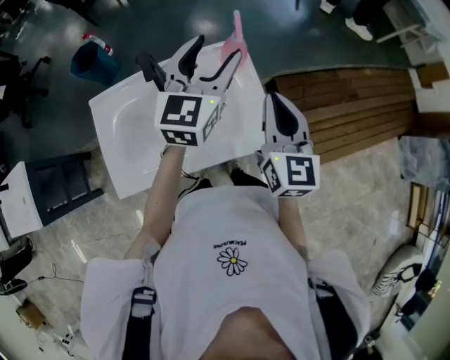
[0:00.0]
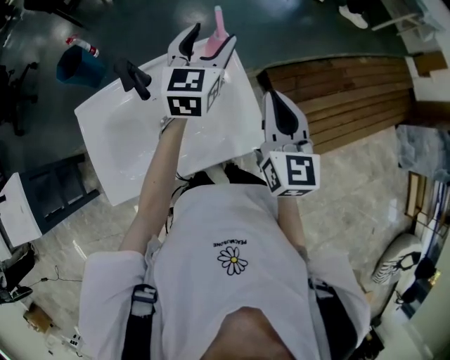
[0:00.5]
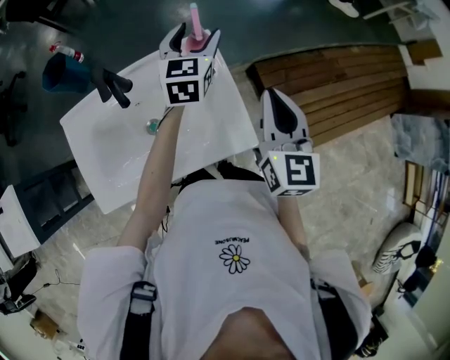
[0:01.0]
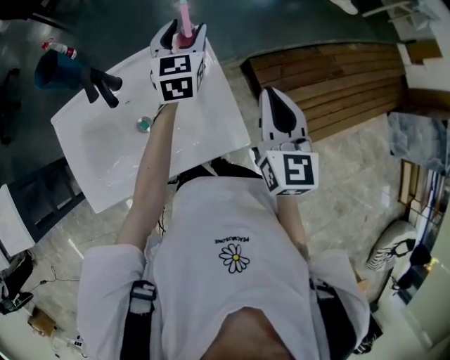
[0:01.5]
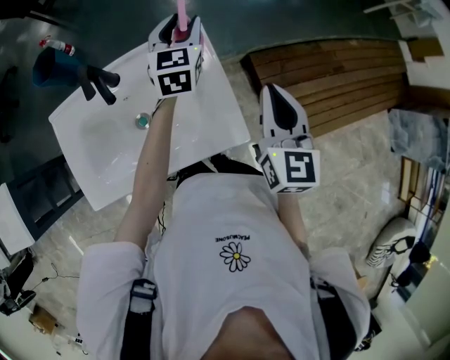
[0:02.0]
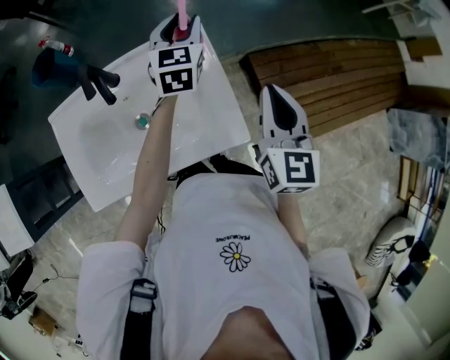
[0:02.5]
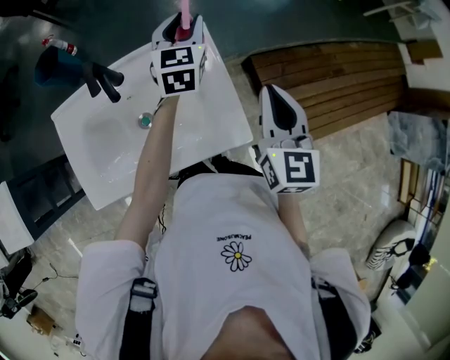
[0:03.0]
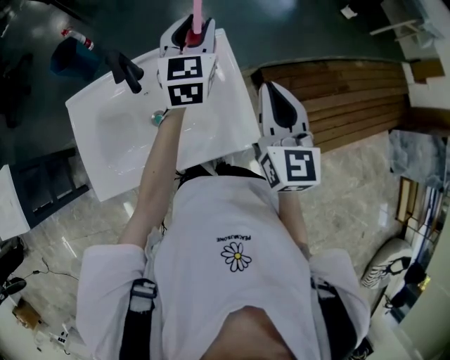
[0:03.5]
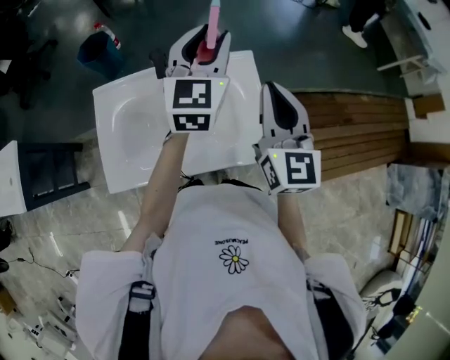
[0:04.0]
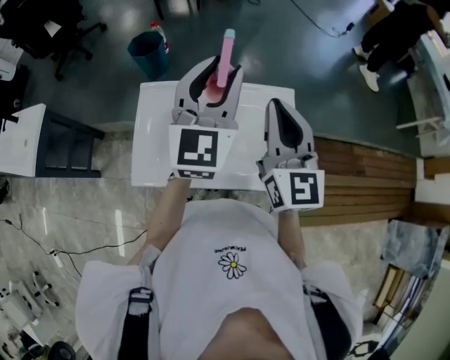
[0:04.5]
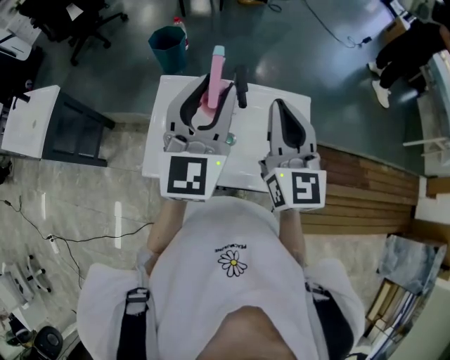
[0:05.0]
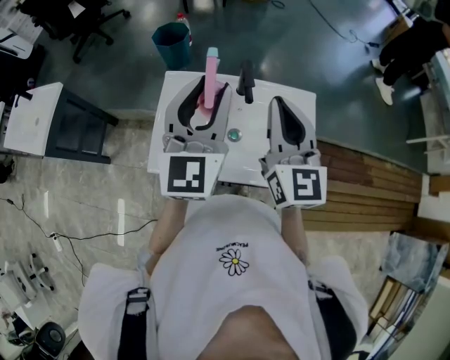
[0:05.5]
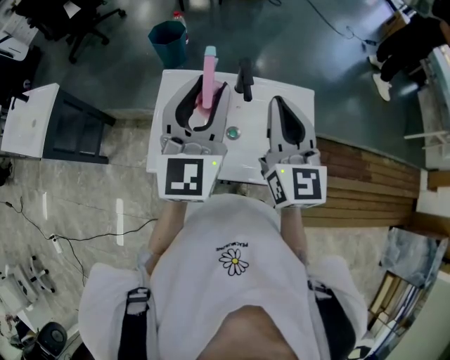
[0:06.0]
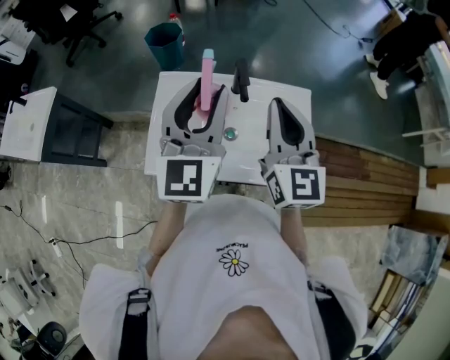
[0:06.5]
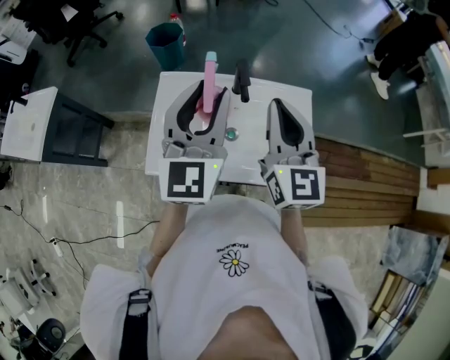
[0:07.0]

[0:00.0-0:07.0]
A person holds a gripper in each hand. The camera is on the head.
0:00.0 to 0:02.0: The right gripper travels to the right and downward by roughly 10 cm. Meanwhile the left gripper heads downward and forward, covering some 20 cm, and closes.
0:02.0 to 0:03.5: The right gripper shifts approximately 5 cm to the left. Meanwhile the left gripper heads upward, covering about 10 cm.
0:03.5 to 0:05.0: The right gripper heads to the left and upward, covering about 25 cm, and turns by some 30 degrees, while the left gripper travels to the left, backward and upward by some 35 cm, and swivels approximately 20 degrees.
0:05.0 to 0:07.0: The grippers stay close to where they were, moving slightly.

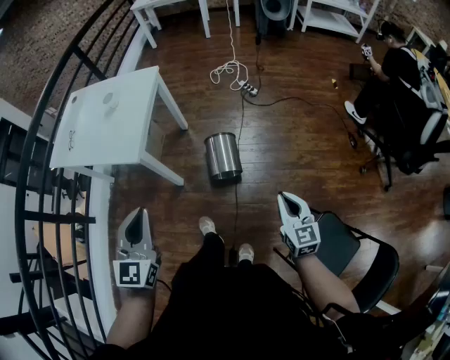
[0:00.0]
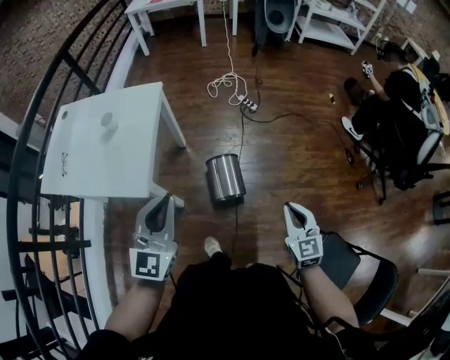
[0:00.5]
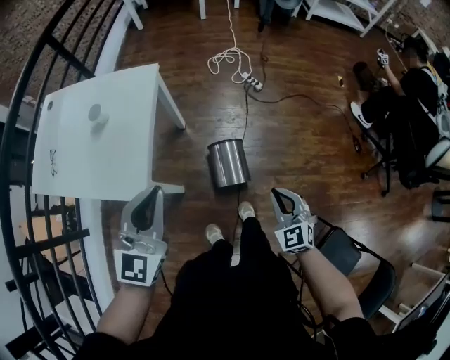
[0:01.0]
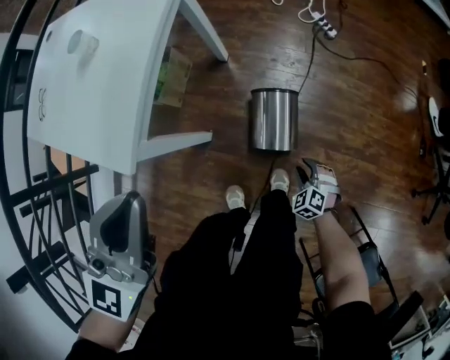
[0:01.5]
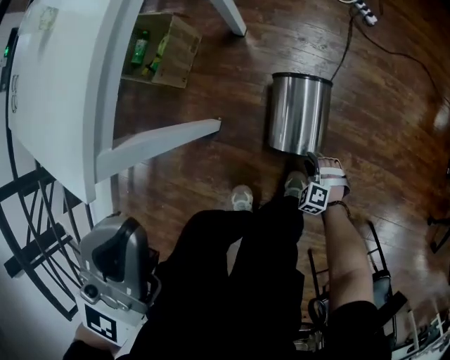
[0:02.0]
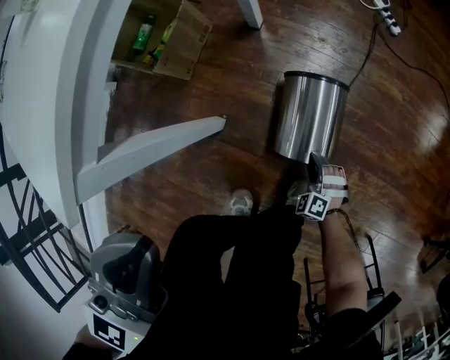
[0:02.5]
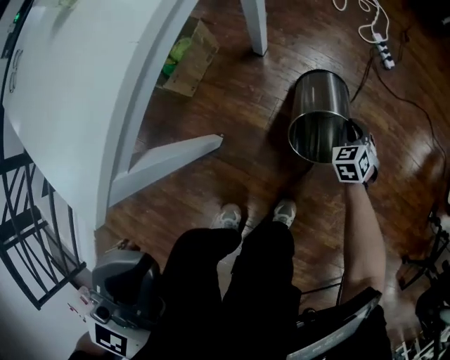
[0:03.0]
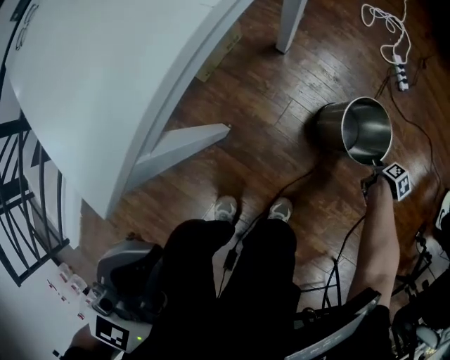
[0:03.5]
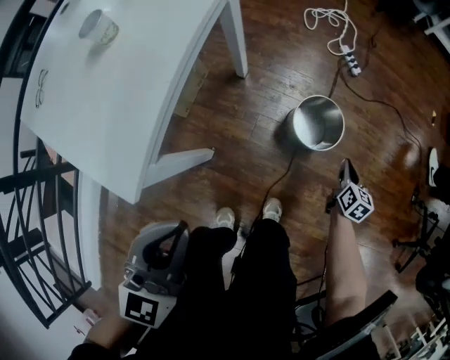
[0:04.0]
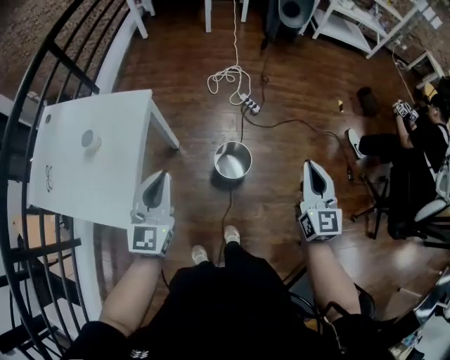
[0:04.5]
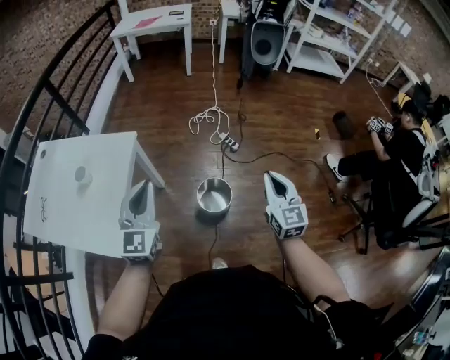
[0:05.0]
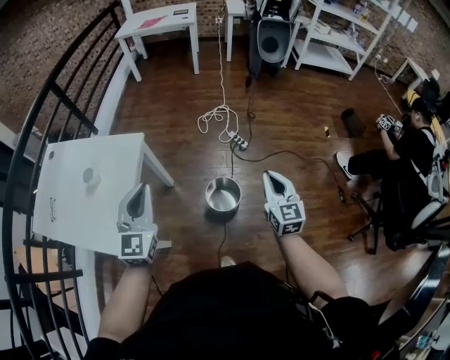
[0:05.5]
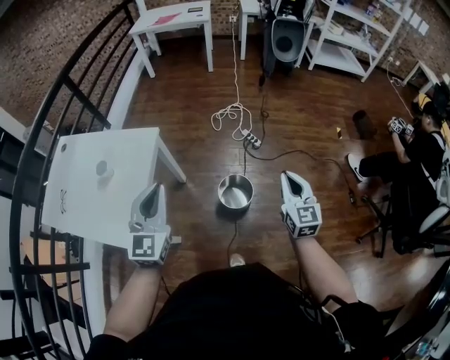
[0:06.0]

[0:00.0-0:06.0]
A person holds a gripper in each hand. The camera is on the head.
0:00.0 to 0:02.0: The left gripper travels forward and downward by approximately 30 cm, while the right gripper heads downward, covering roughly 60 cm, angles its fingers downward, by about 50 degrees, and opens its fingers.
0:02.0 to 0:04.0: The right gripper travels upward, forward and to the right by about 35 cm, rolls clockwise, seen from behind, by about 90 degrees, and closes up.
0:04.0 to 0:06.0: The right gripper shifts some 50 cm upward, and swivels roughly 40 degrees. Meanwhile the left gripper heads upward and forward, covering some 25 cm.

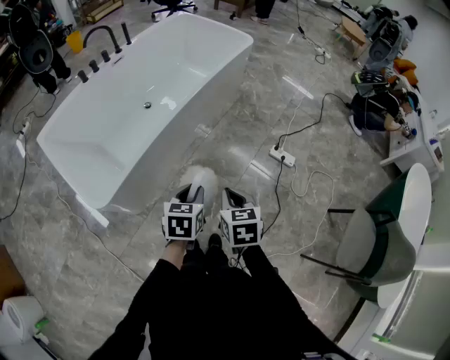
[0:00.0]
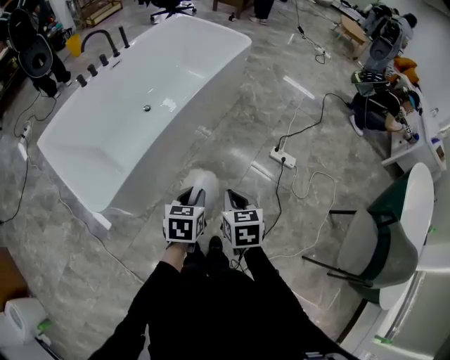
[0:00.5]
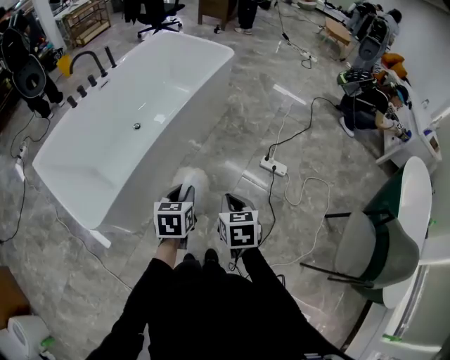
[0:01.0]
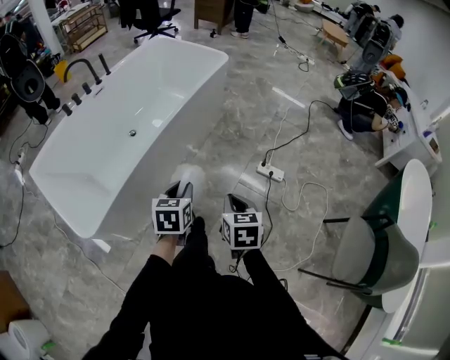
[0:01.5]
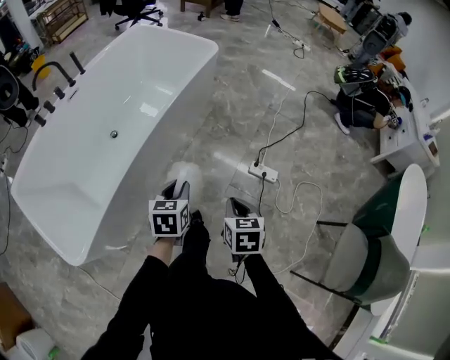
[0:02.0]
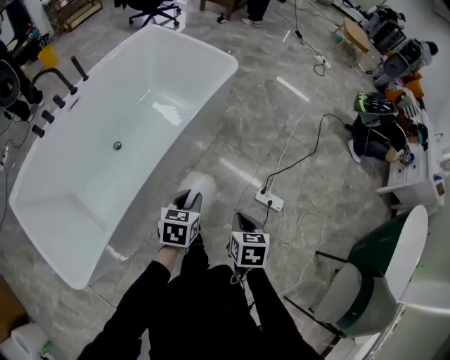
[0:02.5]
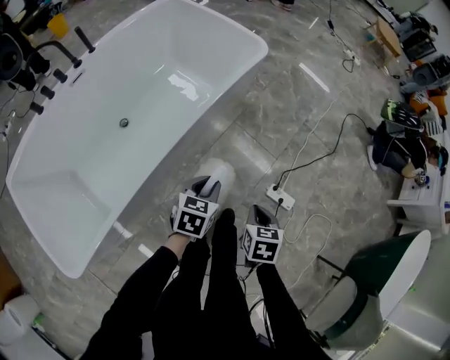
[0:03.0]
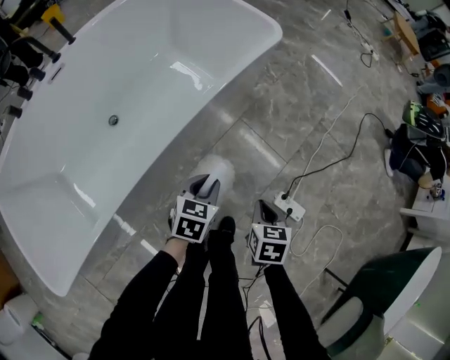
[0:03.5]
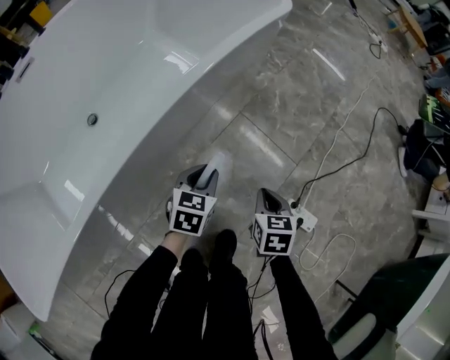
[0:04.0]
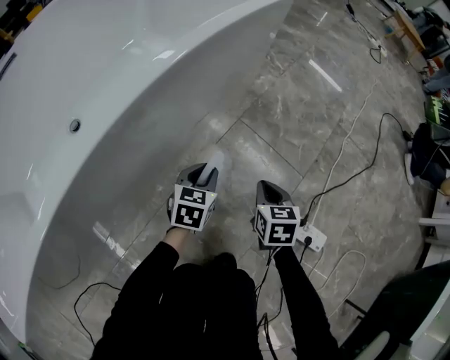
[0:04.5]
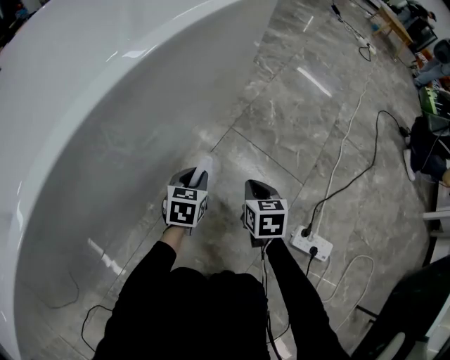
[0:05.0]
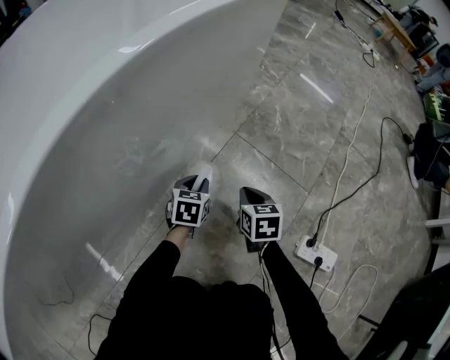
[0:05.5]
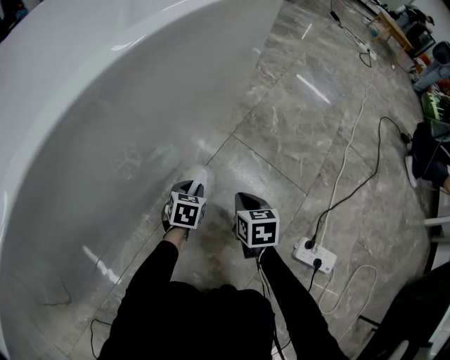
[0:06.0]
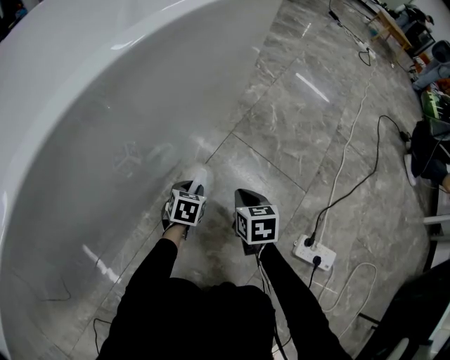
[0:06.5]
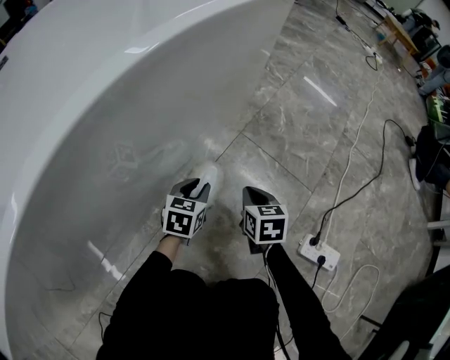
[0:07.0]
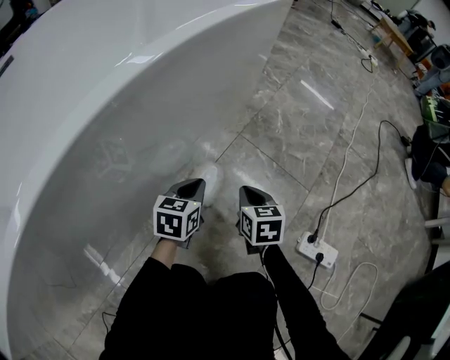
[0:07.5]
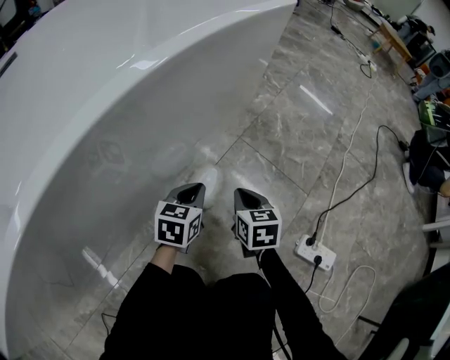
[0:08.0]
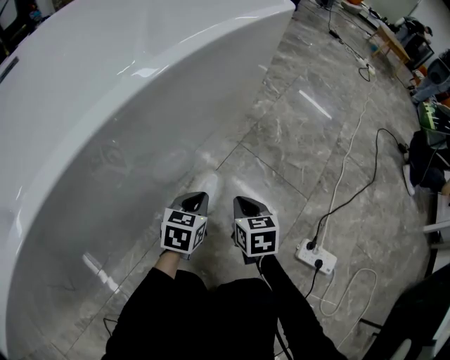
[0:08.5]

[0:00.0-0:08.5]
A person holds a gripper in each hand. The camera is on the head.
0:00.0 to 0:02.0: The right gripper is displaced forward and to the right by about 20 cm. Meanwhile the left gripper travels forward by approximately 20 cm.
0:02.0 to 0:04.0: The right gripper moves forward and downward, roughly 50 cm. Meanwhile the left gripper shifts roughly 50 cm downward and forward.
0:04.0 to 0:06.5: The left gripper goes some 30 cm downward. Meanwhile the right gripper goes roughly 25 cm downward and forward.
0:06.5 to 0:08.5: The left gripper goes some 15 cm upward, and closes. Meanwhile the right gripper heads upward, covering about 5 cm.

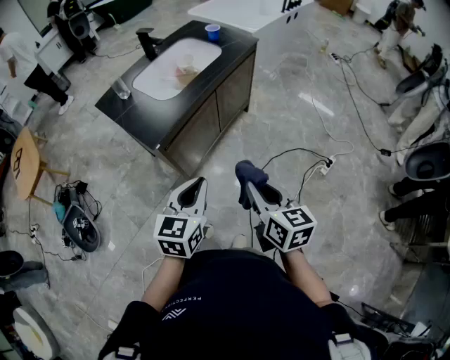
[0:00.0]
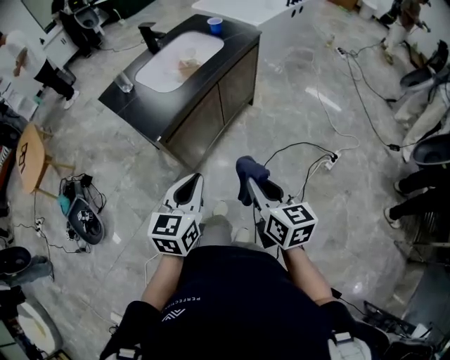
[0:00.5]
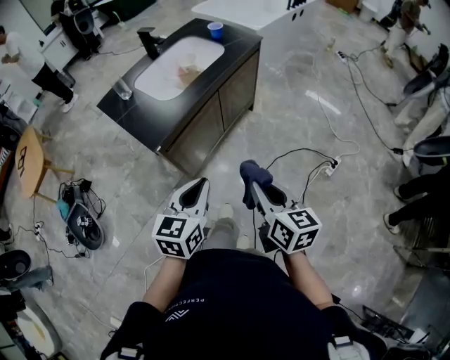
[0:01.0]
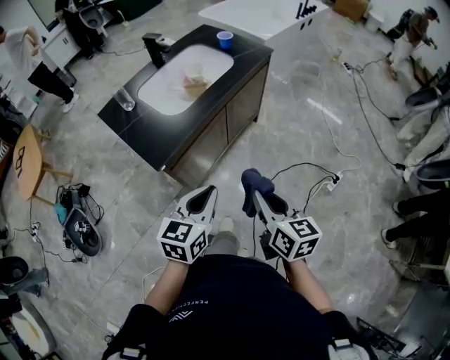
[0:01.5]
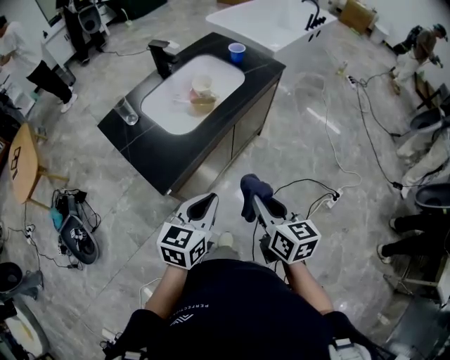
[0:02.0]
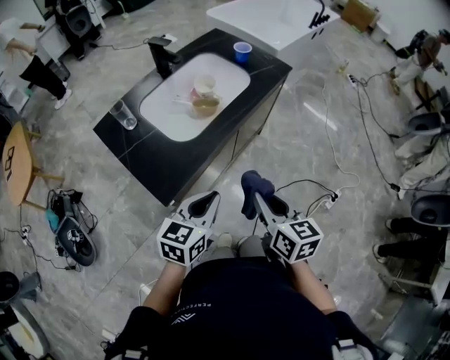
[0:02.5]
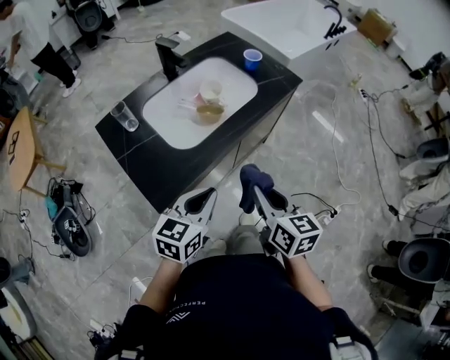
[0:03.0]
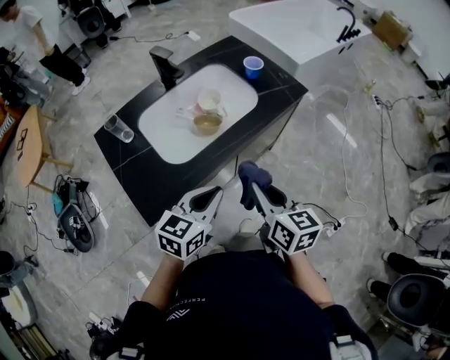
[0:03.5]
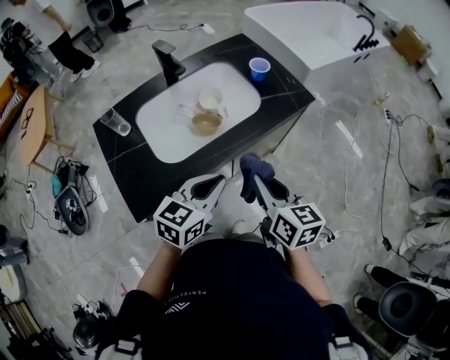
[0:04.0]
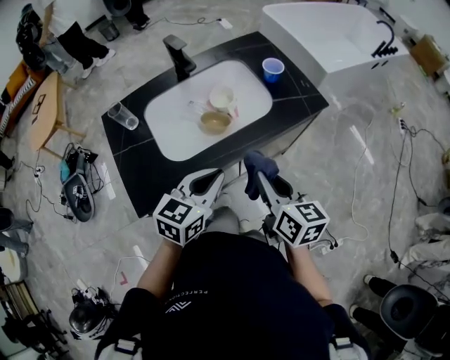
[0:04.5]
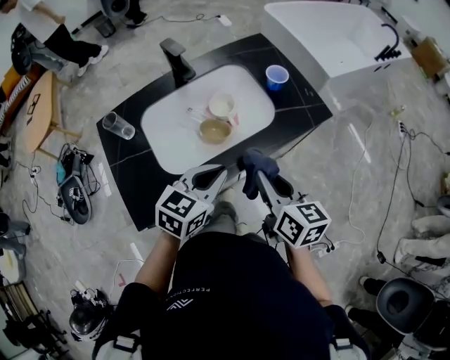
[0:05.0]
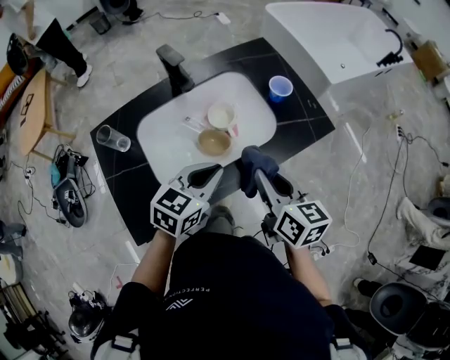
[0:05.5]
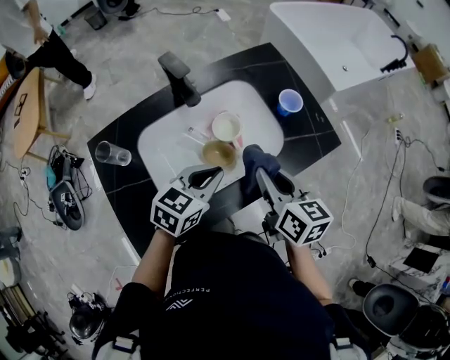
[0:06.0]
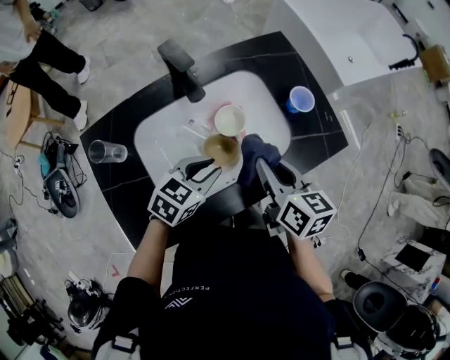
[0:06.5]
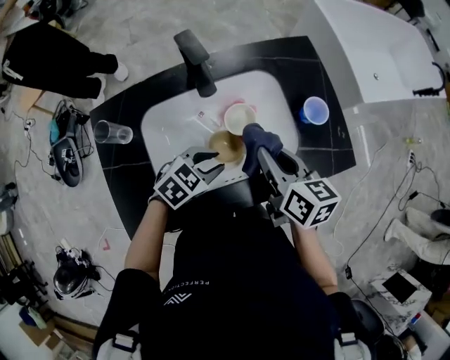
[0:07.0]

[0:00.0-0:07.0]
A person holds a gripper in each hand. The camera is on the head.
0:00.0 to 0:02.0: Both grippers travel together forward, some 15 cm.
0:02.0 to 0:03.5: Both grippers travel together forward, roughly 20 cm.
0:03.5 to 0:05.0: Both grippers travel together forward, about 15 cm.
0:05.0 to 0:07.0: The right gripper is displaced forward by some 20 cm. Meanwhile the left gripper goes roughly 20 cm forward, downward and to the left, changes its angle by approximately 20 degrees, and opens.
